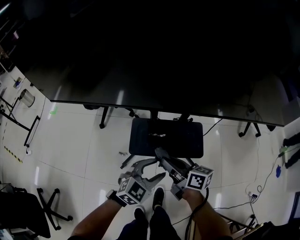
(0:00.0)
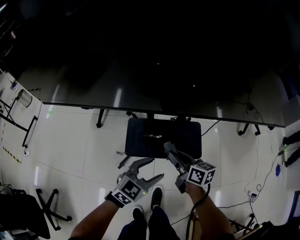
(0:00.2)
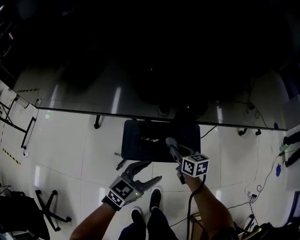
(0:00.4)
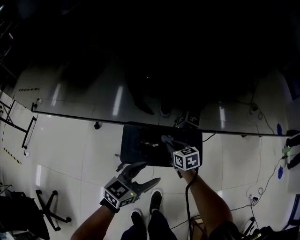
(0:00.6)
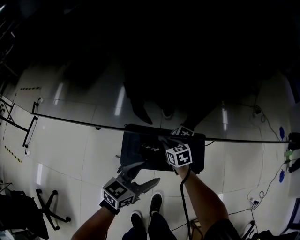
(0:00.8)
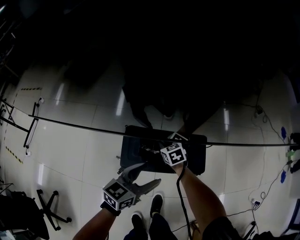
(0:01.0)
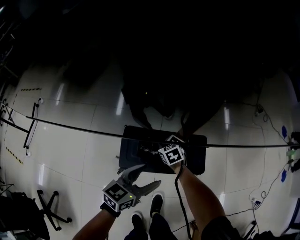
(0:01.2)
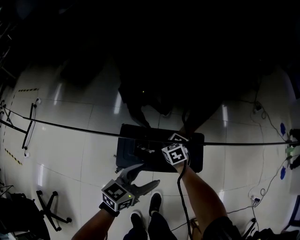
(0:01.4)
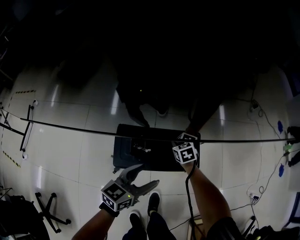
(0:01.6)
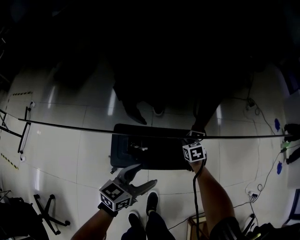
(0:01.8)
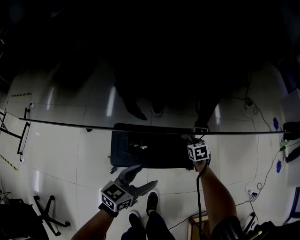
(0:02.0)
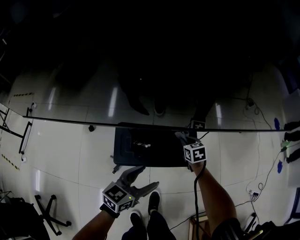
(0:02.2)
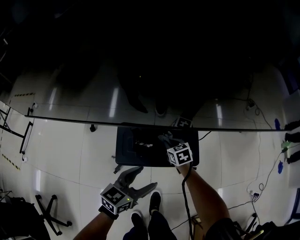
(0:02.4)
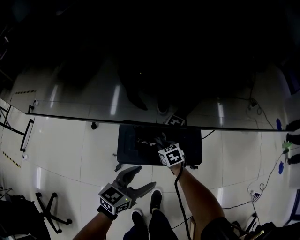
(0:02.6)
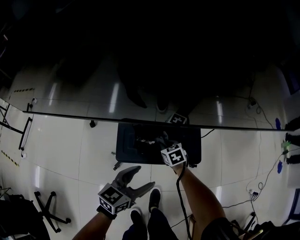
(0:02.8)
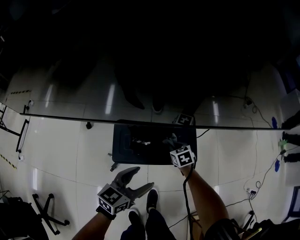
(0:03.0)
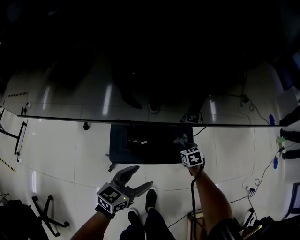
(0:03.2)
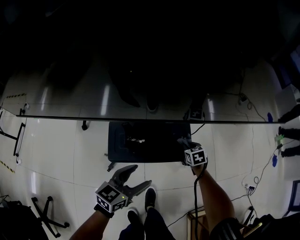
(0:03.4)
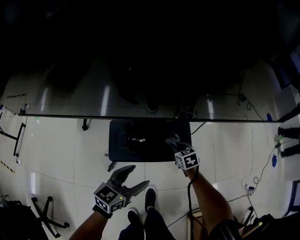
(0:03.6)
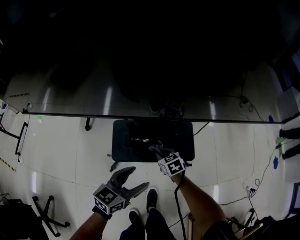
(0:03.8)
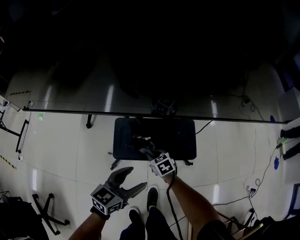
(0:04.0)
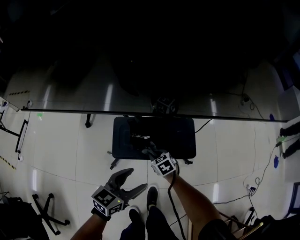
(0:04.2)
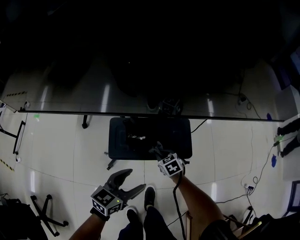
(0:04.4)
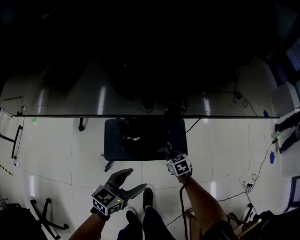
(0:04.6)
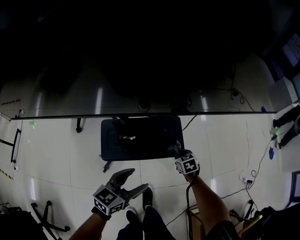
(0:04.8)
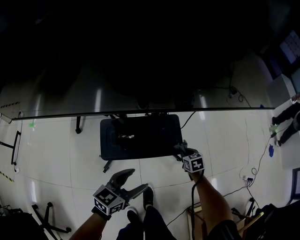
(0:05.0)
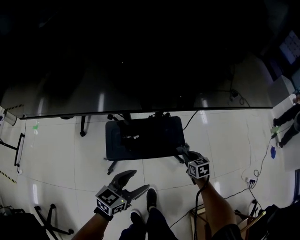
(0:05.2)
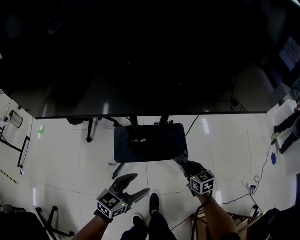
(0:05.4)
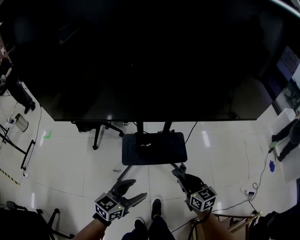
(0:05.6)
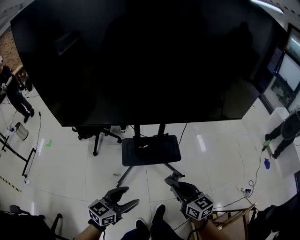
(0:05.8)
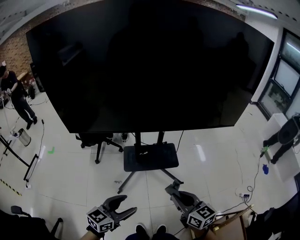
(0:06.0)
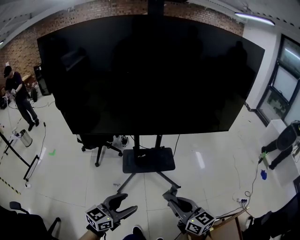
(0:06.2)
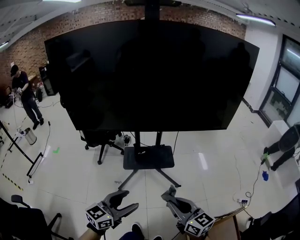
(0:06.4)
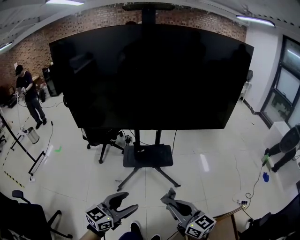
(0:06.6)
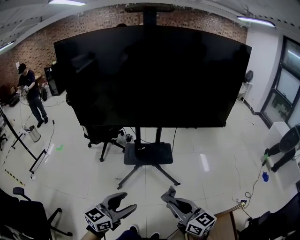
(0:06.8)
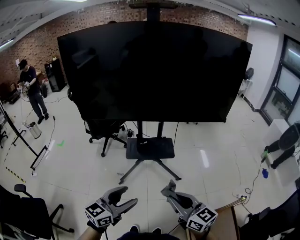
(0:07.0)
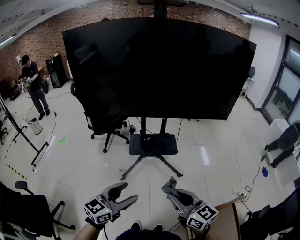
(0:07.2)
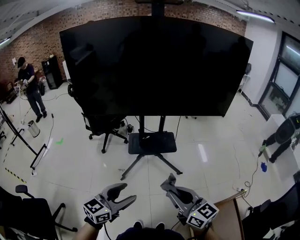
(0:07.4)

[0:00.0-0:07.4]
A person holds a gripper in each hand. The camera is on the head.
0:00.0 to 0:01.4: The right gripper travels downward and forward by about 35 cm, and tips its fingers downward by approximately 40 degrees. Meanwhile the left gripper is displaced forward by roughly 10 cm, and rotates roughly 40 degrees.
0:01.4 to 0:03.0: The right gripper swings left and right, approximately 20 cm each way, with 2 reversals. Meanwhile the left gripper heads backward, covering about 5 cm.
0:03.0 to 0:04.4: The right gripper swings left and right, approximately 20 cm each way, with 2 reversals.
0:04.4 to 0:06.0: The right gripper goes some 60 cm upward and backward, and tilts its fingers roughly 40 degrees upward; the left gripper heads backward and upward, covering roughly 35 cm.
0:06.0 to 0:07.4: The two grippers go roughly 20 cm backward and upward.

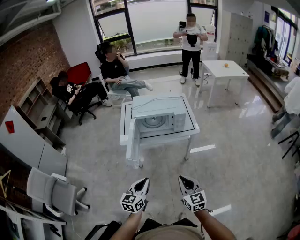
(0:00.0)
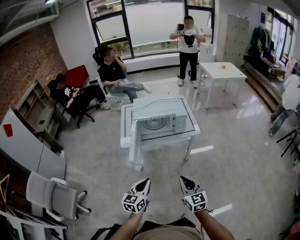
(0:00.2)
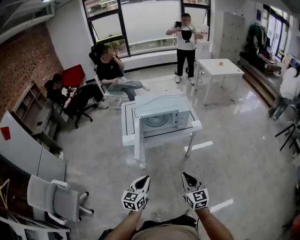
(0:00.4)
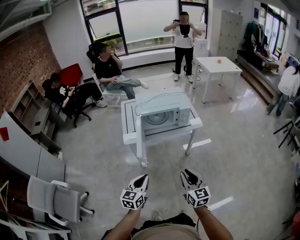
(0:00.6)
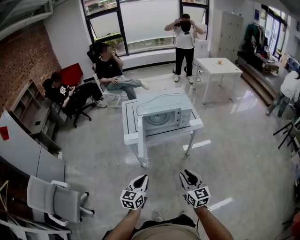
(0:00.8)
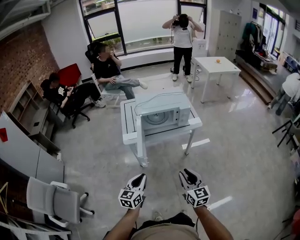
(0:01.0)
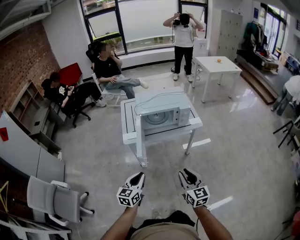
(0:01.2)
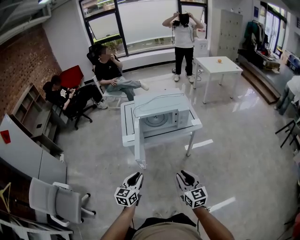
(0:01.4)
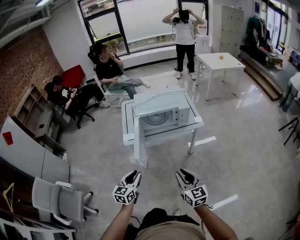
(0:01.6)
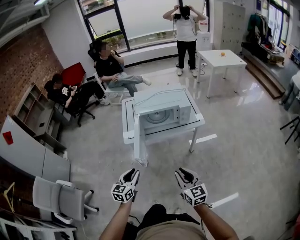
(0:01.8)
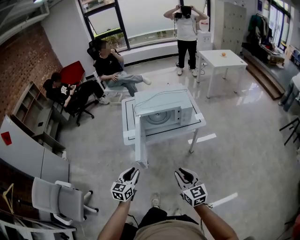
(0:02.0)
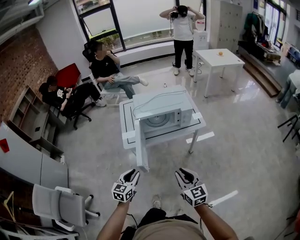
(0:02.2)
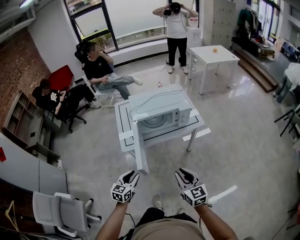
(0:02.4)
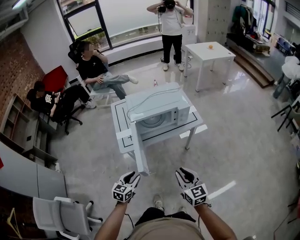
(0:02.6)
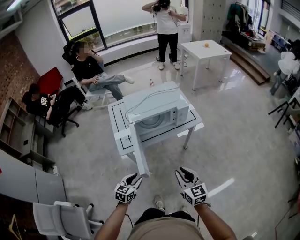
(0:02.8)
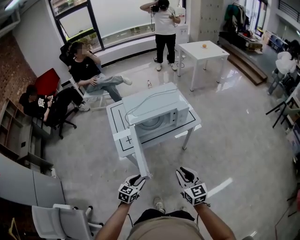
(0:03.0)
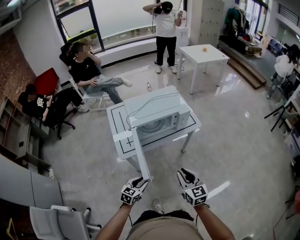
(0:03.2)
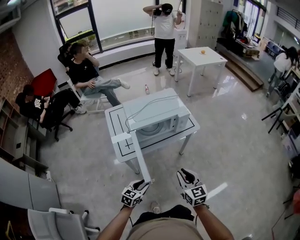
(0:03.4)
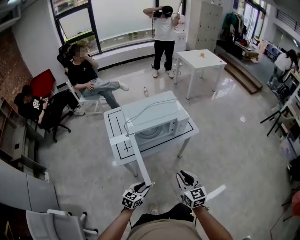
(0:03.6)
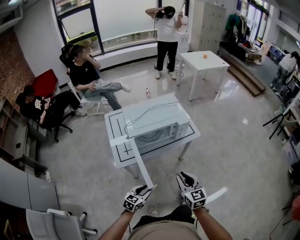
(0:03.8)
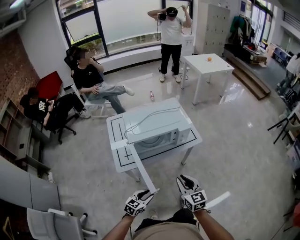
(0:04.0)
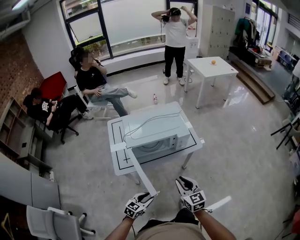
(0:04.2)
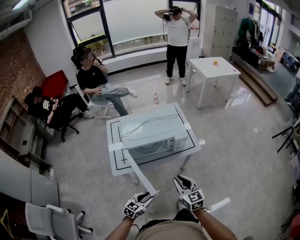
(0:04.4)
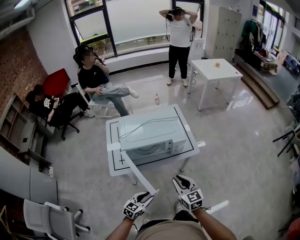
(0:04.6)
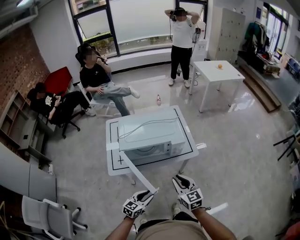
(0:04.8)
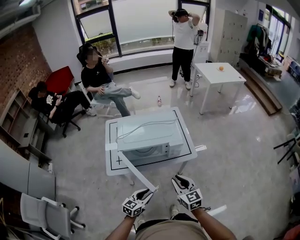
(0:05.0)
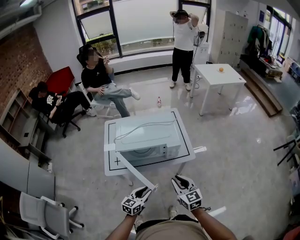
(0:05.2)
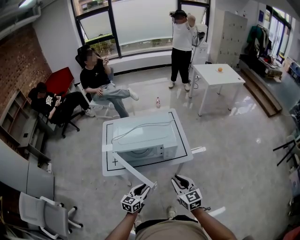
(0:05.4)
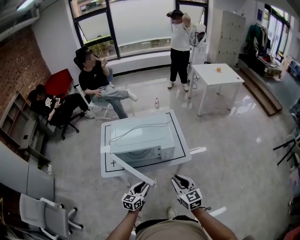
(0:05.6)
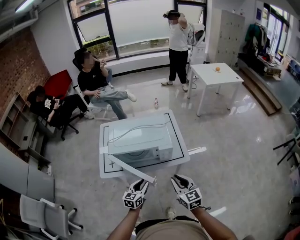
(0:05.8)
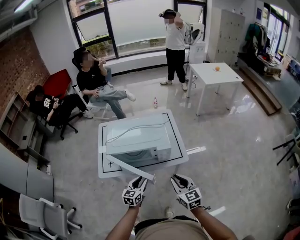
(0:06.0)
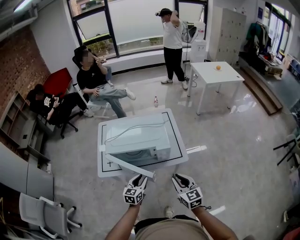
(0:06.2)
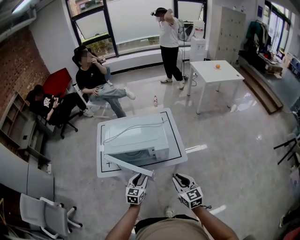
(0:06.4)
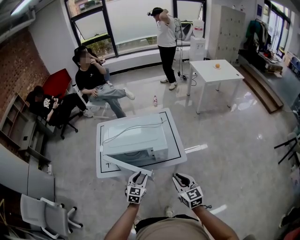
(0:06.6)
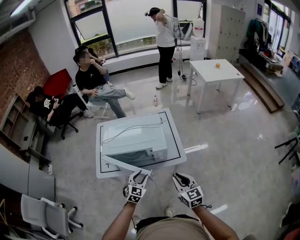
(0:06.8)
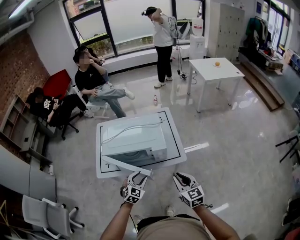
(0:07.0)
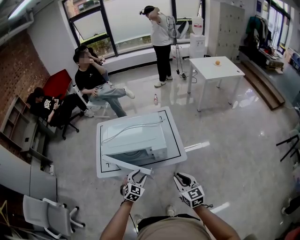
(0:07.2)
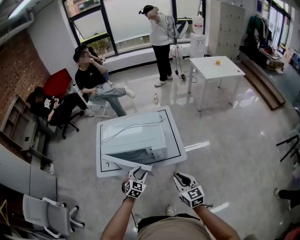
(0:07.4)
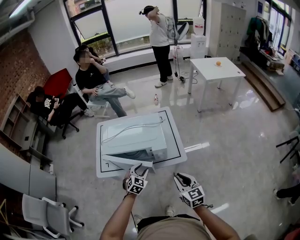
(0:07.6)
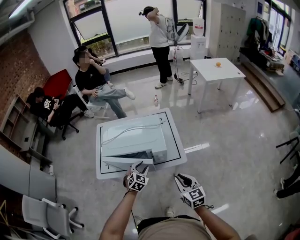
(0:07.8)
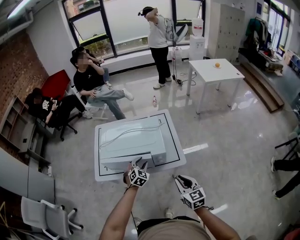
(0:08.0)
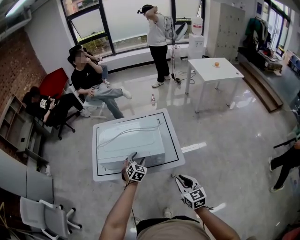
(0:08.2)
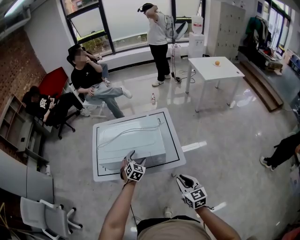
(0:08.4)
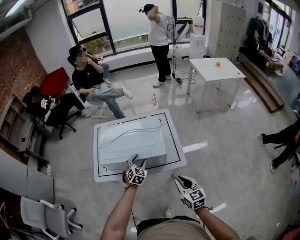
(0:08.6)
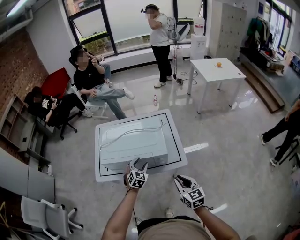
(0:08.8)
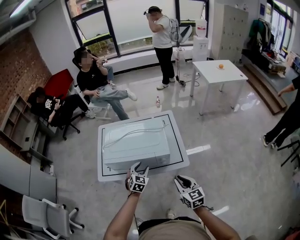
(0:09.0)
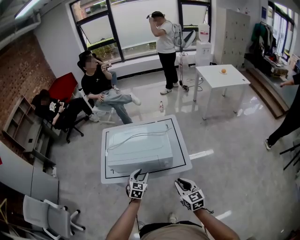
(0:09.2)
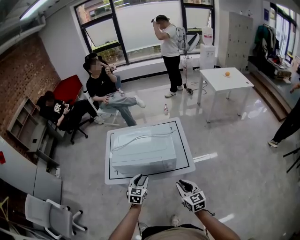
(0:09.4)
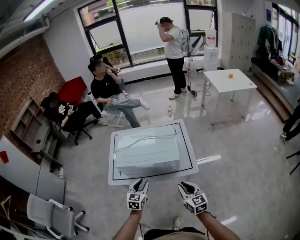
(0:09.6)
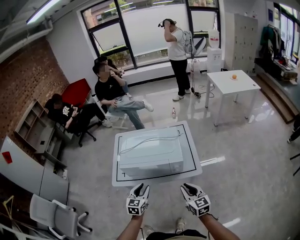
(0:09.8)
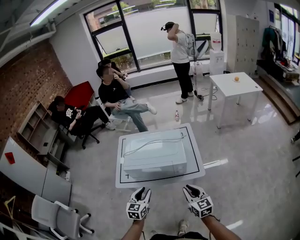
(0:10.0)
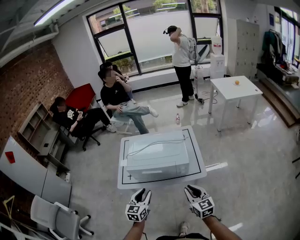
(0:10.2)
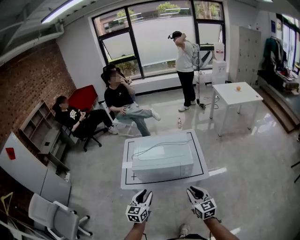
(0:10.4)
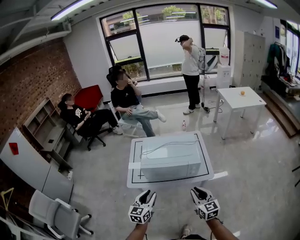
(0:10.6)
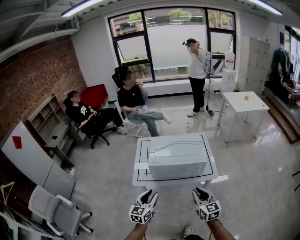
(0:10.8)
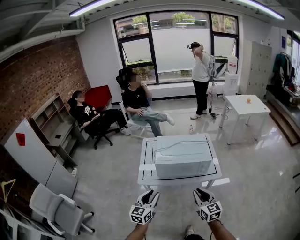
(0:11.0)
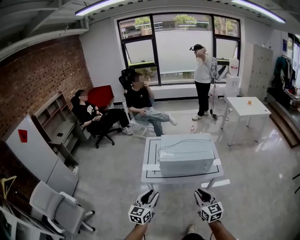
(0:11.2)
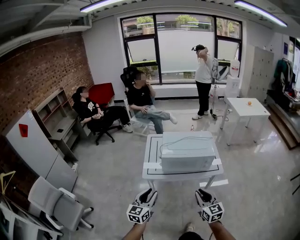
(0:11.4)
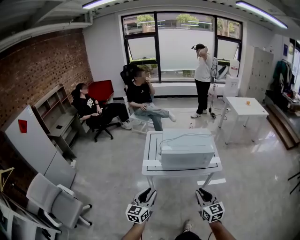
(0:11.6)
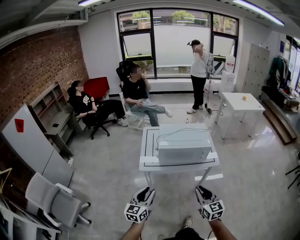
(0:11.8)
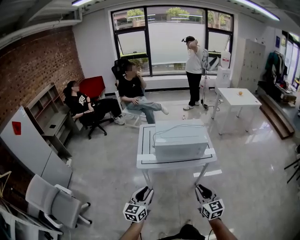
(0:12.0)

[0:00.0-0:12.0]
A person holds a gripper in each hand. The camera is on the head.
0:00.0 to 0:01.6: The left gripper shifts about 15 cm to the left. The right gripper goes roughly 10 cm to the left.
0:01.6 to 0:03.0: The left gripper travels downward, forward and to the left by roughly 20 cm, and swivels about 30 degrees. The right gripper moves forward and to the left, some 15 cm.
0:03.0 to 0:04.4: The right gripper moves forward, about 15 cm. Meanwhile the left gripper goes approximately 15 cm to the right and forward.
0:04.4 to 0:06.0: The right gripper shifts some 15 cm to the right and forward; the left gripper is displaced forward and to the right by roughly 20 cm, and rotates roughly 30 degrees.
0:06.0 to 0:07.6: The left gripper travels forward and to the right by some 10 cm, and changes its angle by about 40 degrees, while the right gripper travels to the right by approximately 5 cm.
0:07.6 to 0:09.0: The left gripper goes about 5 cm forward.
0:09.0 to 0:10.4: The left gripper moves backward, to the left and upward, some 25 cm, and changes its angle by about 30 degrees; the right gripper is displaced to the left and upward by approximately 10 cm.
0:10.4 to 0:12.0: Both grippers travel together backward and to the left, approximately 25 cm.

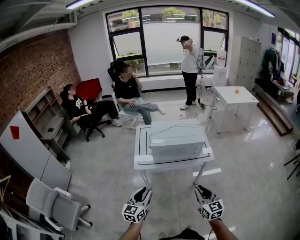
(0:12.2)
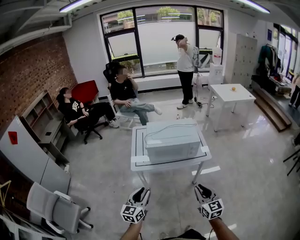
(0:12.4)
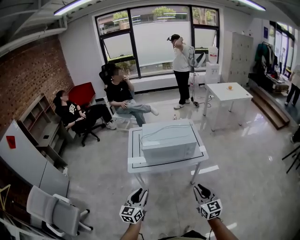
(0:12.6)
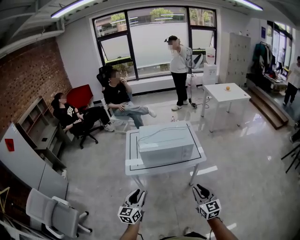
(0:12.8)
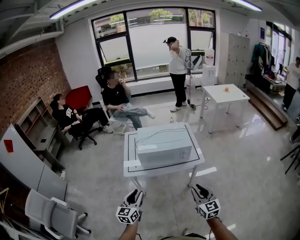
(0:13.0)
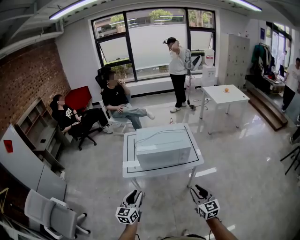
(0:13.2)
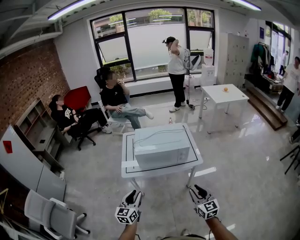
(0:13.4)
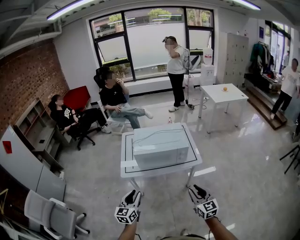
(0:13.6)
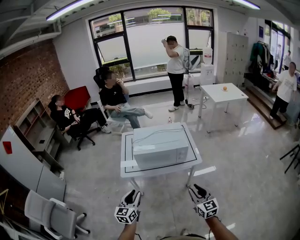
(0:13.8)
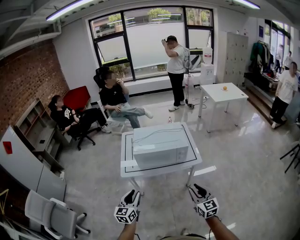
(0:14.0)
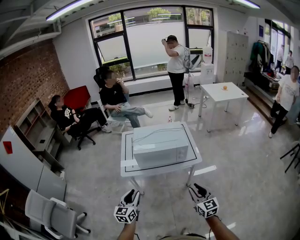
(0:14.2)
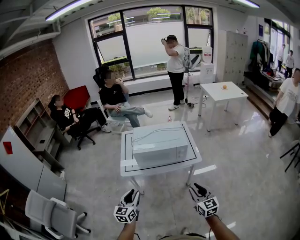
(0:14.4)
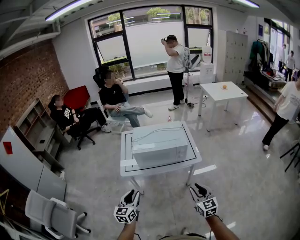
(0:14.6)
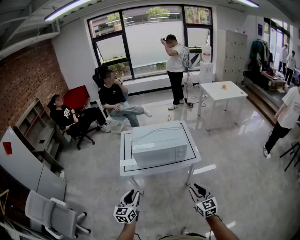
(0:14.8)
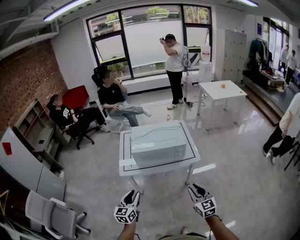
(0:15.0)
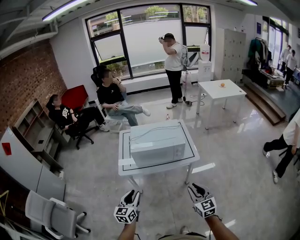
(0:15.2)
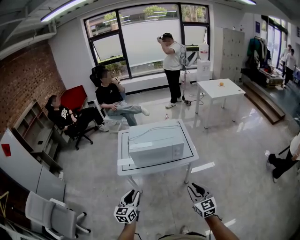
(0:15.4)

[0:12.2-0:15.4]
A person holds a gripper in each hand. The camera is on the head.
0:12.2 to 0:13.8: The right gripper heads to the right and forward, covering some 10 cm. Meanwhile the left gripper shifts about 10 cm forward and to the right.
0:13.8 to 0:15.4: The grippers make only small movements.

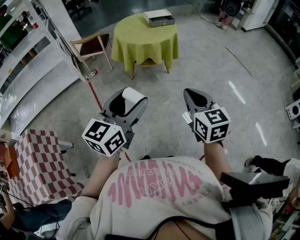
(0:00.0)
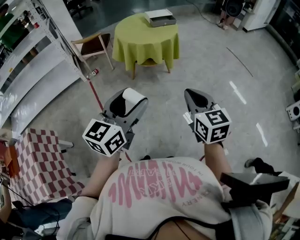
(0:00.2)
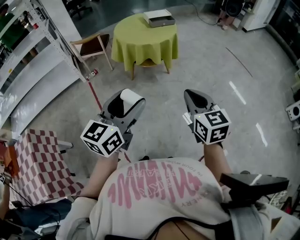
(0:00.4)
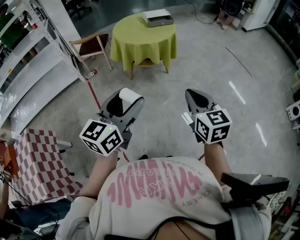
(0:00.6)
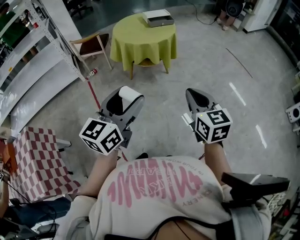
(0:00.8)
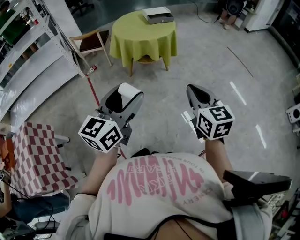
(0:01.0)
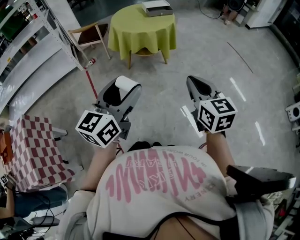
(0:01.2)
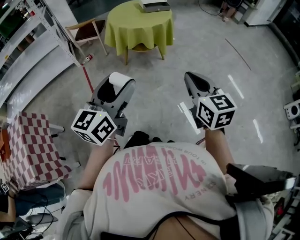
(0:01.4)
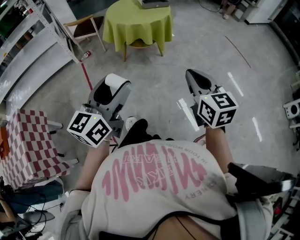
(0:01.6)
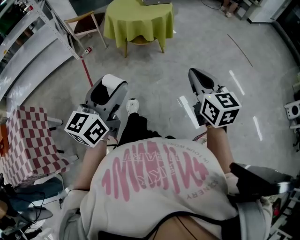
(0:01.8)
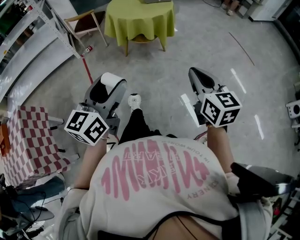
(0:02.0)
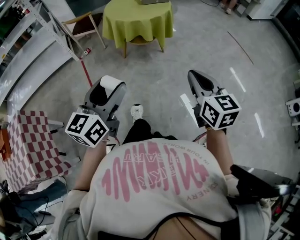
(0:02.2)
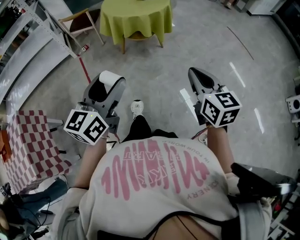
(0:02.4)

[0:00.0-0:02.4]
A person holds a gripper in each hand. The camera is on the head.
0:00.0 to 0:01.2: Both grippers travel together to the right, approximately 5 cm.
0:01.2 to 0:02.4: The right gripper shifts by some 5 cm.
